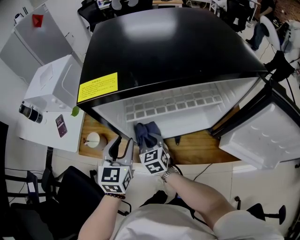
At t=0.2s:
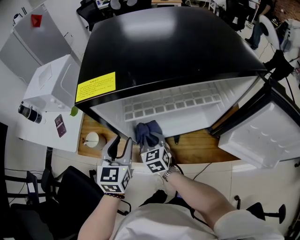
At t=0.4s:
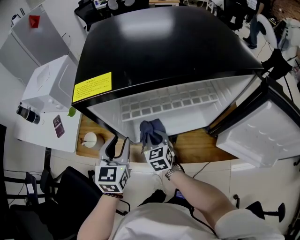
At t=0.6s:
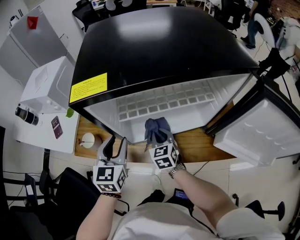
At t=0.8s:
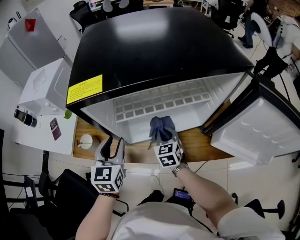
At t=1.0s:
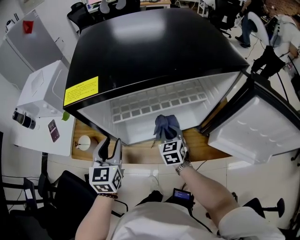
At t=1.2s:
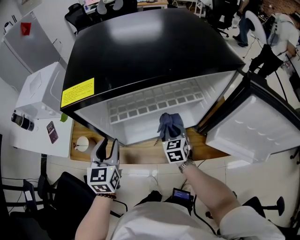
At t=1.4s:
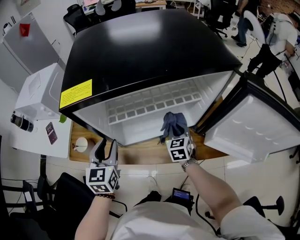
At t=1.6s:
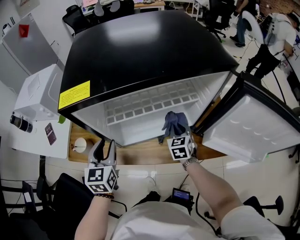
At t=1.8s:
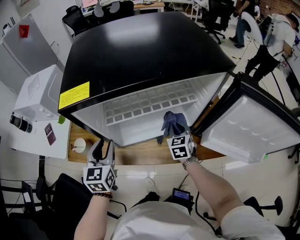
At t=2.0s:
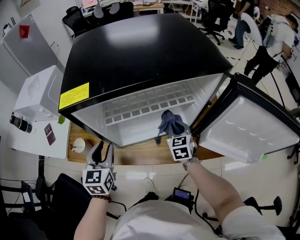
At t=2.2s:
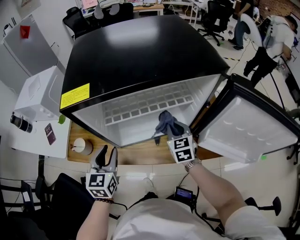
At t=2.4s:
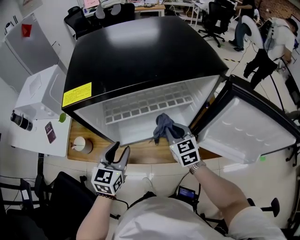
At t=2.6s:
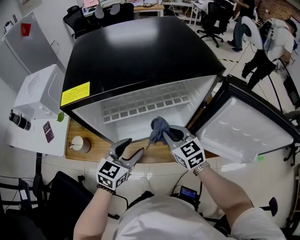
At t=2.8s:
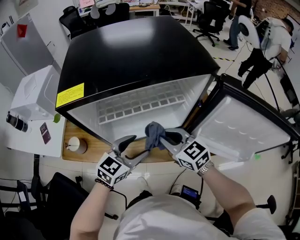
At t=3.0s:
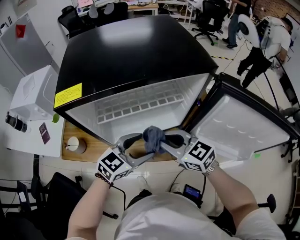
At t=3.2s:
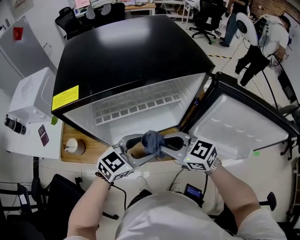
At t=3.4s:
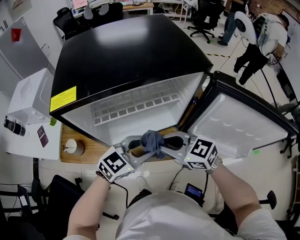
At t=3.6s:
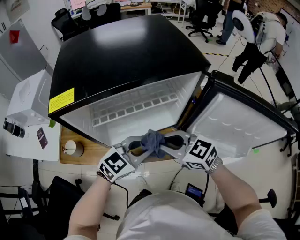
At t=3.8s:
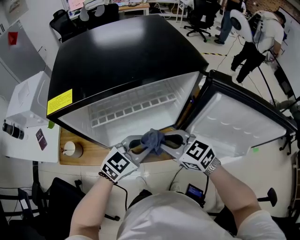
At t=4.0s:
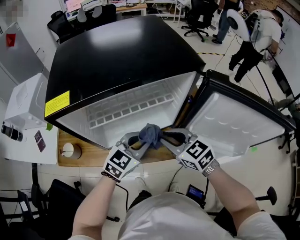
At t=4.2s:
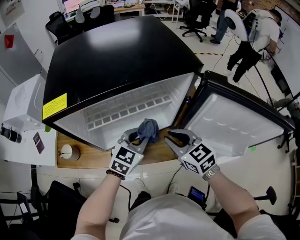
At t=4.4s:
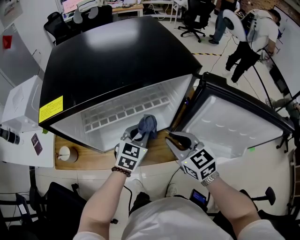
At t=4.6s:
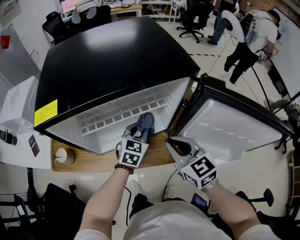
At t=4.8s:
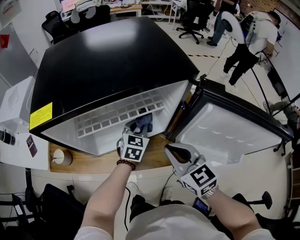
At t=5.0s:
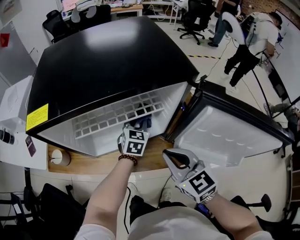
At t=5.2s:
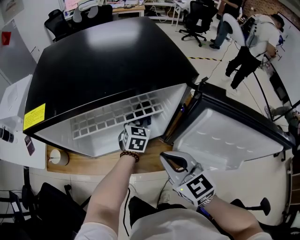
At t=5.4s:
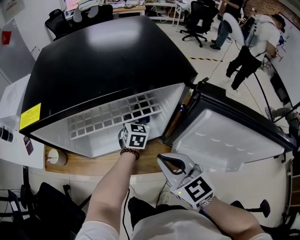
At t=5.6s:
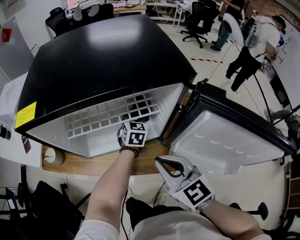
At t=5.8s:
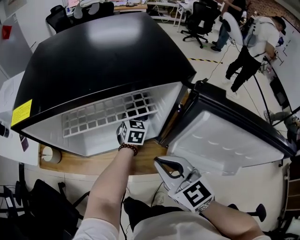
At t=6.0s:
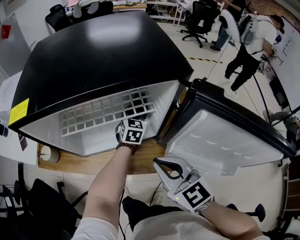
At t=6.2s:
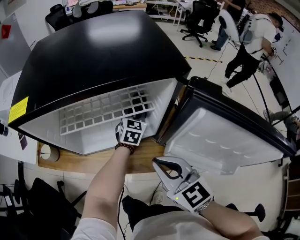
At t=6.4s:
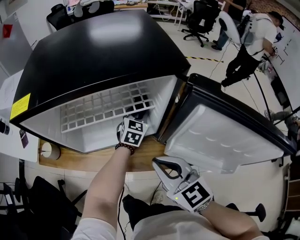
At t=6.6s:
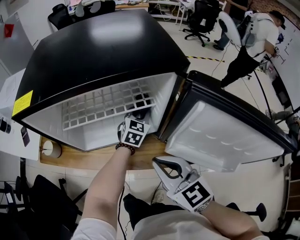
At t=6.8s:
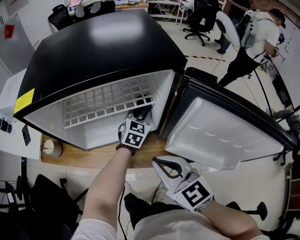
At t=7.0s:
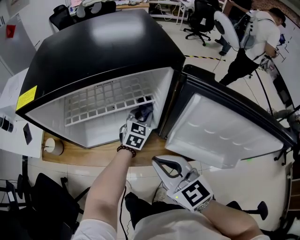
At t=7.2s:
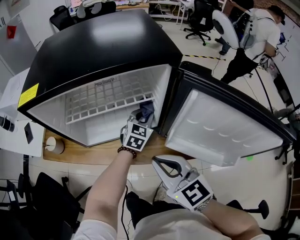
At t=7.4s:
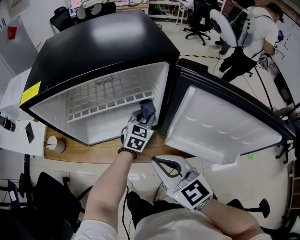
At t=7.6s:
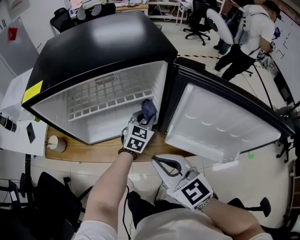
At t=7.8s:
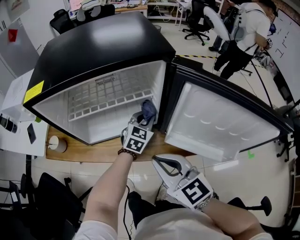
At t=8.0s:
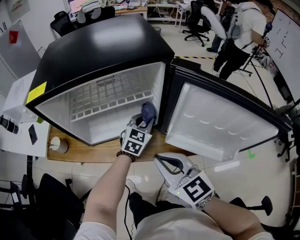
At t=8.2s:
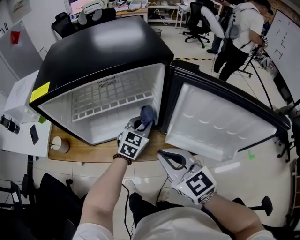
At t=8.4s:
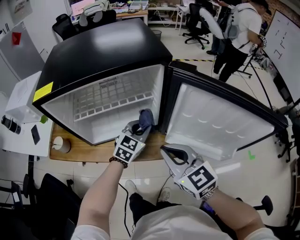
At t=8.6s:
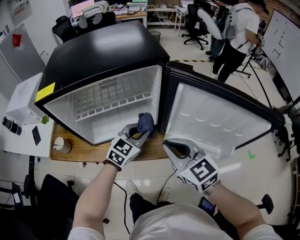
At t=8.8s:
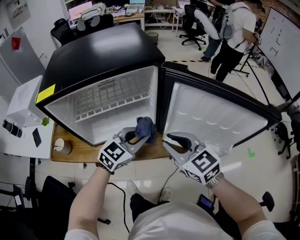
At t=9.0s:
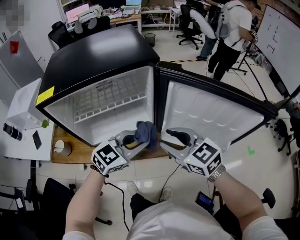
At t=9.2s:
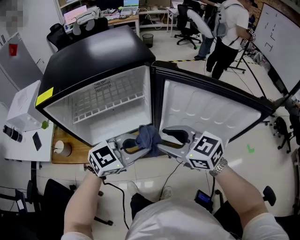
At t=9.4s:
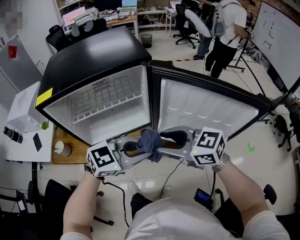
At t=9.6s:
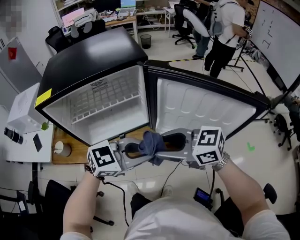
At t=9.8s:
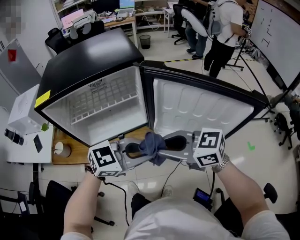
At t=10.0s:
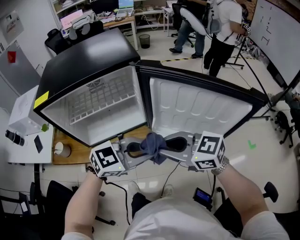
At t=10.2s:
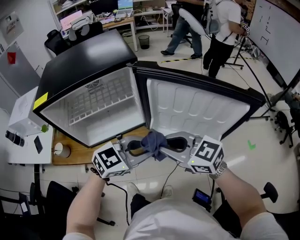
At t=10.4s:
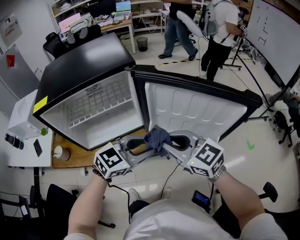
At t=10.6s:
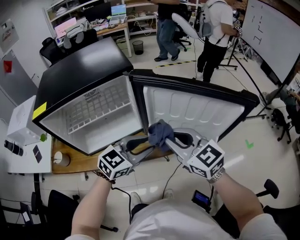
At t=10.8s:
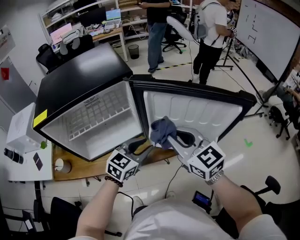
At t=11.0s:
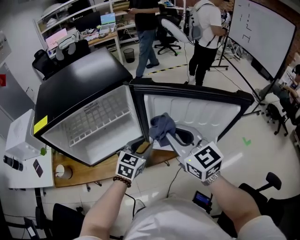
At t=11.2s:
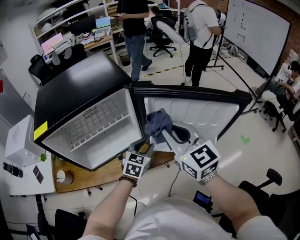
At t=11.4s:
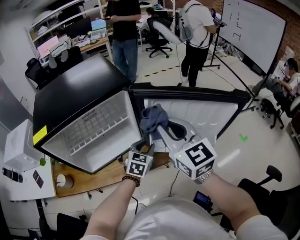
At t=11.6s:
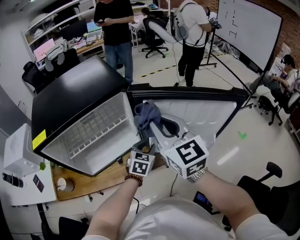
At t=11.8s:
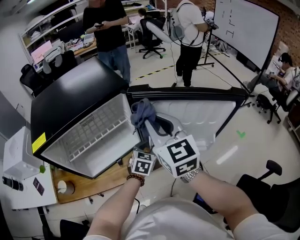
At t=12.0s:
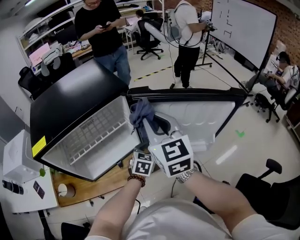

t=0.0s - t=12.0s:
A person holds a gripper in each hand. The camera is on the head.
t=0.0s - t=1.6s: The right gripper goes roughly 25 cm to the right, and rotates about 20 degrees.
t=1.6s - t=3.0s: The right gripper goes roughly 20 cm upward and backward, and rotates roughly 50 degrees, while the left gripper travels to the right by about 20 cm, turns by roughly 50 degrees, and opens up.
t=3.0s - t=4.4s: The left gripper moves about 10 cm, rotates approximately 20 degrees, and closes. Meanwhile the right gripper shifts by about 10 cm, and swivels some 20 degrees.
t=4.4s - t=6.0s: The left gripper heads forward and to the right, covering about 15 cm.
t=6.0s - t=7.6s: The right gripper travels backward by about 5 cm, while the left gripper shifts some 10 cm backward.
t=7.6s - t=9.0s: The left gripper moves backward and upward, about 20 cm, and turns by approximately 30 degrees. The right gripper is displaced to the right by approximately 5 cm, and opens.
t=9.0s - t=10.4s: The right gripper moves about 5 cm, and closes its fingers; the left gripper changes place by roughly 10 cm.
t=10.4s - t=12.0s: The left gripper heads downward and forward, covering some 20 cm, and rotates about 30 degrees. Meanwhile the right gripper heads upward and forward, covering some 15 cm, and swivels about 50 degrees.

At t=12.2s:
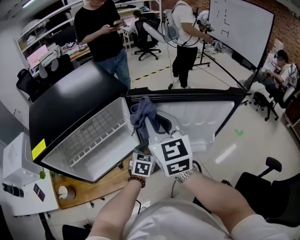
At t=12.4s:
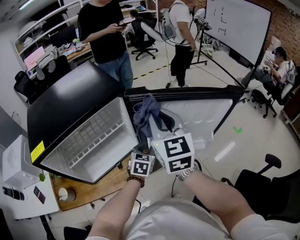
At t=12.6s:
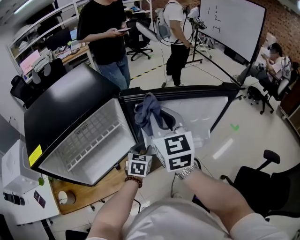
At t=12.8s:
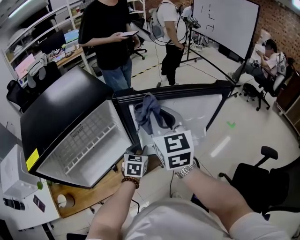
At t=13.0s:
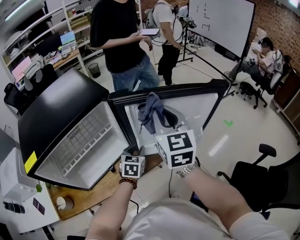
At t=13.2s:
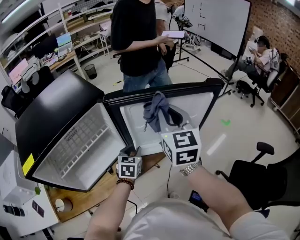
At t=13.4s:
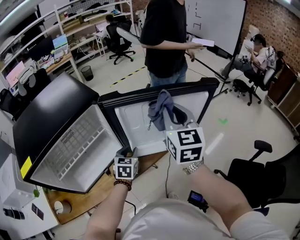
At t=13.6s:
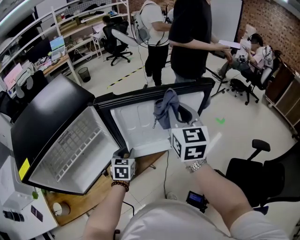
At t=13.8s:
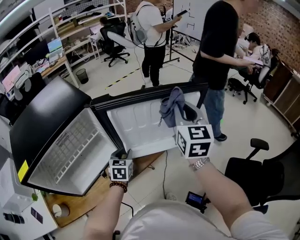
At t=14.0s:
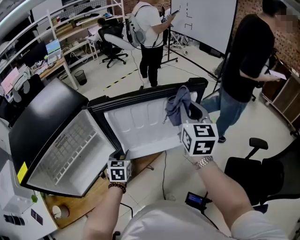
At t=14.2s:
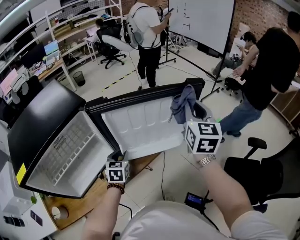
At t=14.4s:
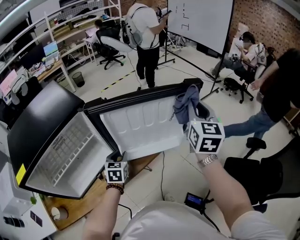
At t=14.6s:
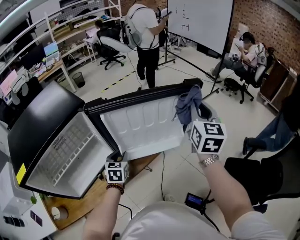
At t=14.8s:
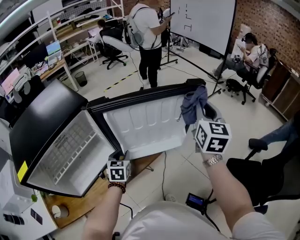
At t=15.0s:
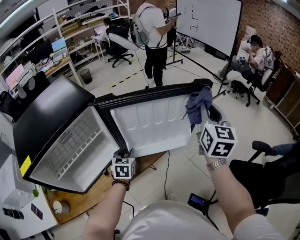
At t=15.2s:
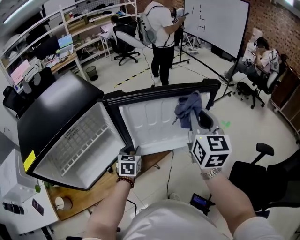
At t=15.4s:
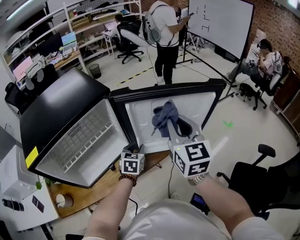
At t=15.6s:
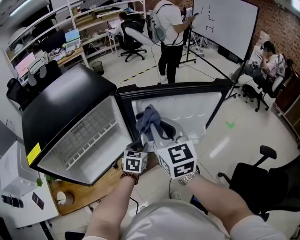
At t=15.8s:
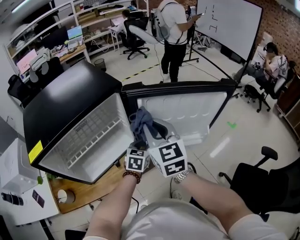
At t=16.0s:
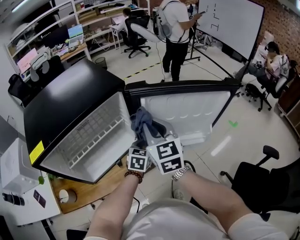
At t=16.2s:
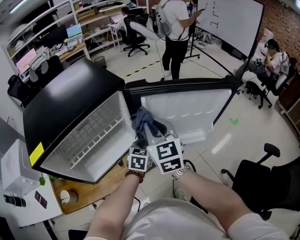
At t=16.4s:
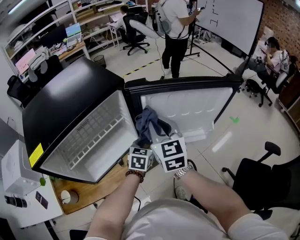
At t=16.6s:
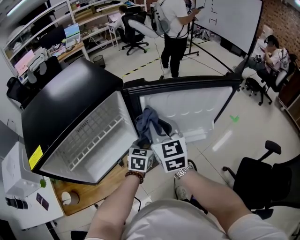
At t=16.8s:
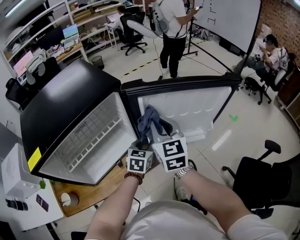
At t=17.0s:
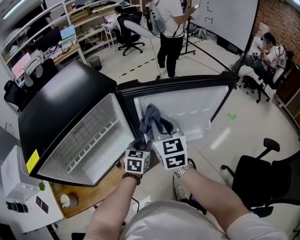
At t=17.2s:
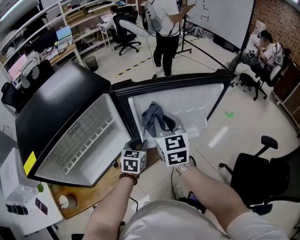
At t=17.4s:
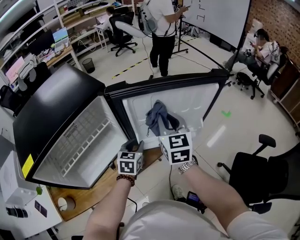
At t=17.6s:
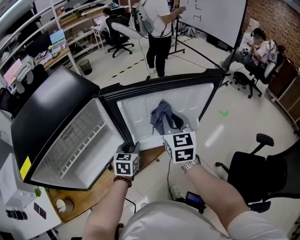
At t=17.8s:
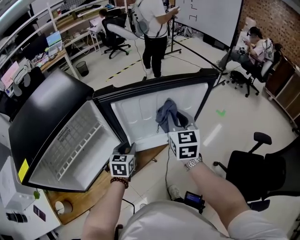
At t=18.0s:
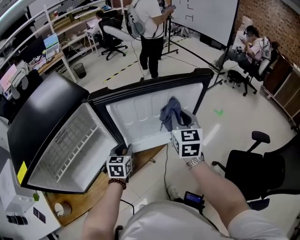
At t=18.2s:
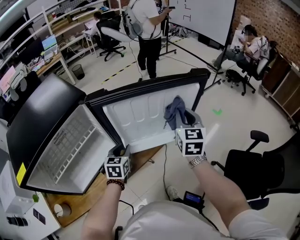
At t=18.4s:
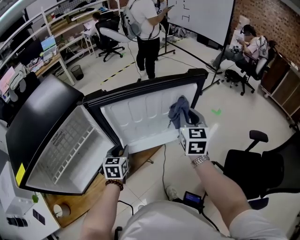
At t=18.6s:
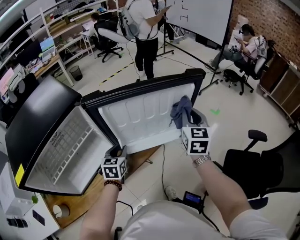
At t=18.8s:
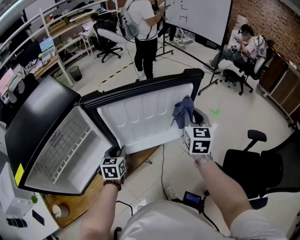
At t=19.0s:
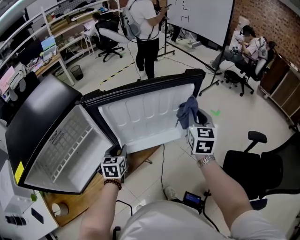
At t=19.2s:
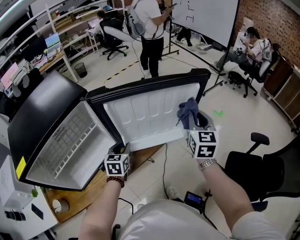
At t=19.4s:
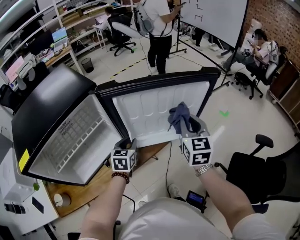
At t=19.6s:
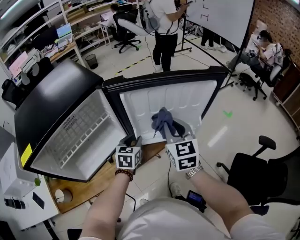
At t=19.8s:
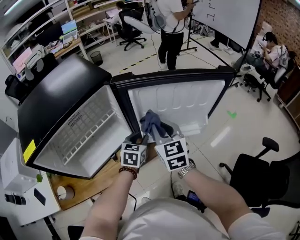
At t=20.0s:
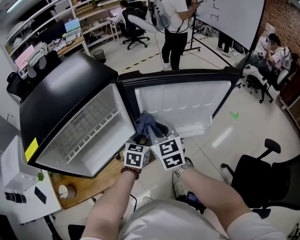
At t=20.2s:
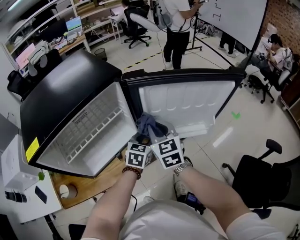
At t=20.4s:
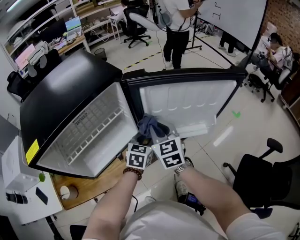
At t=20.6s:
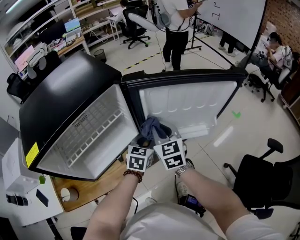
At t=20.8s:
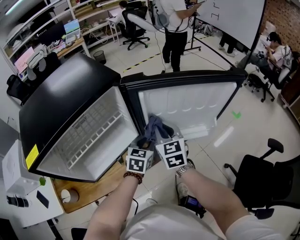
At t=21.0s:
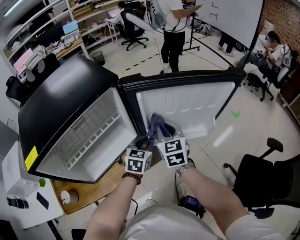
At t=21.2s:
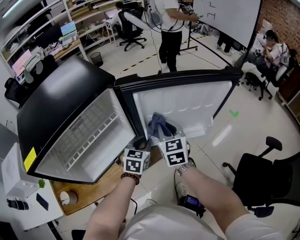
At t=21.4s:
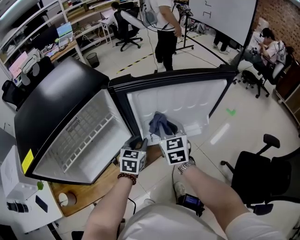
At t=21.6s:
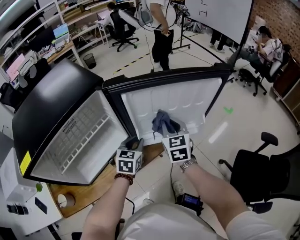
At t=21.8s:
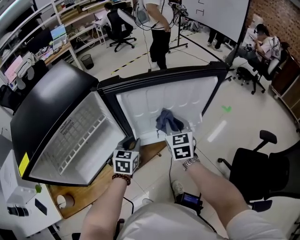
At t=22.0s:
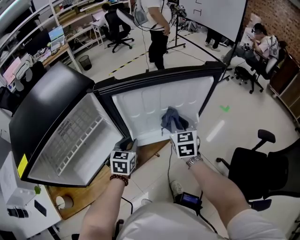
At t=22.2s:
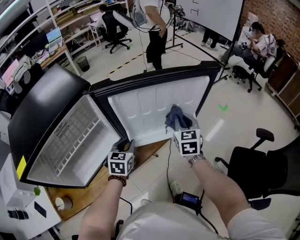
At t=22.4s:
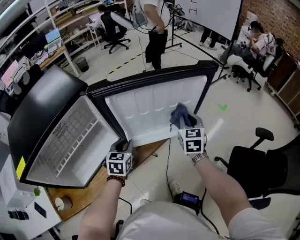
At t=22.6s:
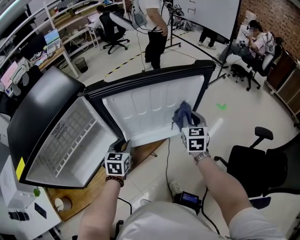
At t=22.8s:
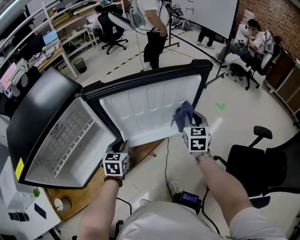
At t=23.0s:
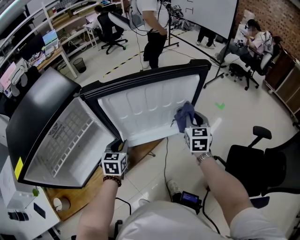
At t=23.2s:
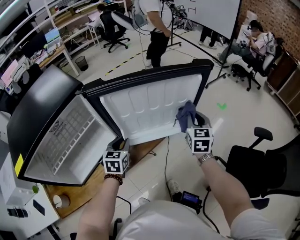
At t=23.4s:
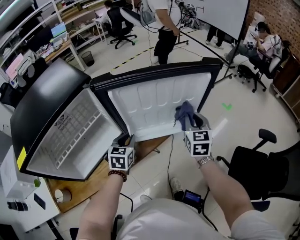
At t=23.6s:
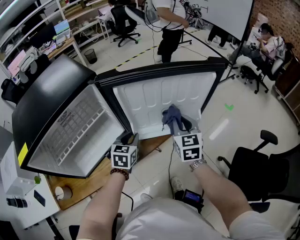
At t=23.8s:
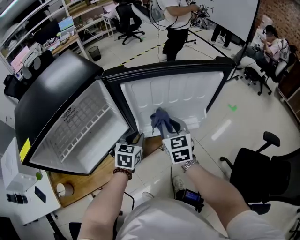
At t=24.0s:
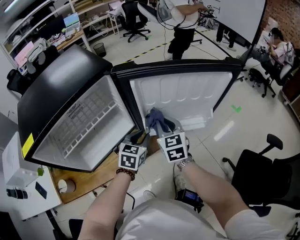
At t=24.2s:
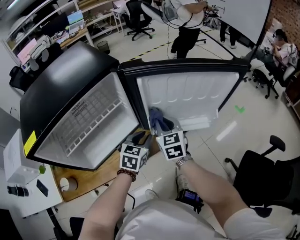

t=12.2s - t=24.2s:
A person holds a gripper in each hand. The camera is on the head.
t=12.2s - t=13.8s: The right gripper travels to the right by roughly 20 cm, and changes its angle by approximately 30 degrees.
t=13.8s - t=15.2s: The right gripper reaches about 10 cm to the right, then returns.
t=15.2s - t=16.6s: The right gripper heads to the left and downward, covering some 25 cm.
t=16.6s - t=18.2s: The right gripper is displaced to the right by approximately 25 cm, and rotates about 20 degrees.
t=18.2s - t=19.8s: The right gripper travels to the left and backward by roughly 20 cm, and changes its angle by about 30 degrees.
t=19.8s - t=21.2s: The right gripper ends up roughly 5 cm from where it was.
t=21.2s - t=22.6s: The right gripper moves to the right, roughly 20 cm, and rotates roughly 20 degrees.
t=22.6s - t=24.2s: The right gripper travels to the left by approximately 25 cm, and rotates approximately 30 degrees.
